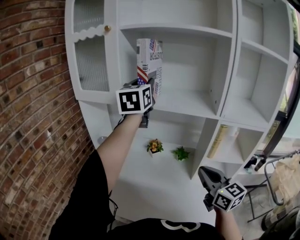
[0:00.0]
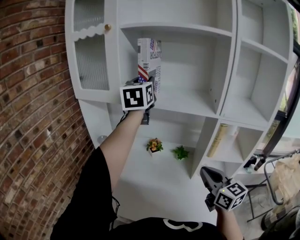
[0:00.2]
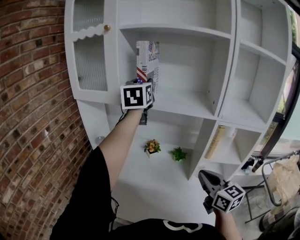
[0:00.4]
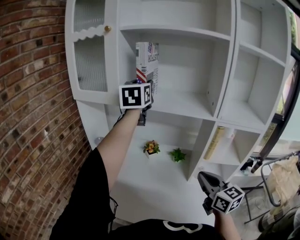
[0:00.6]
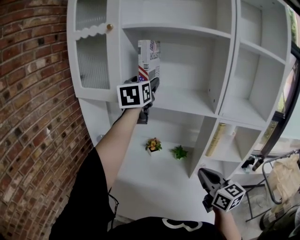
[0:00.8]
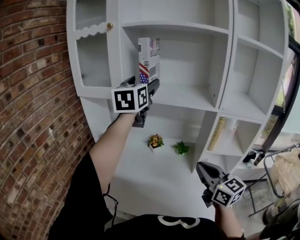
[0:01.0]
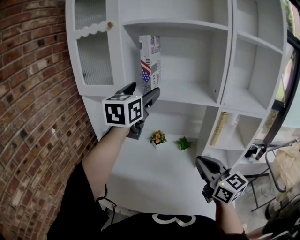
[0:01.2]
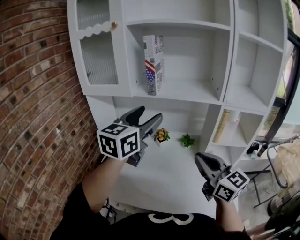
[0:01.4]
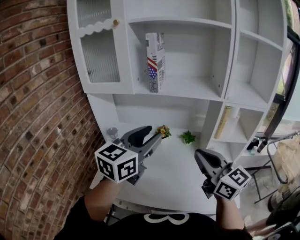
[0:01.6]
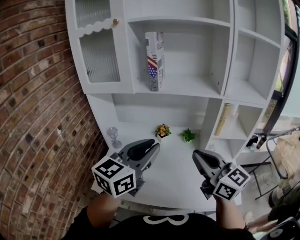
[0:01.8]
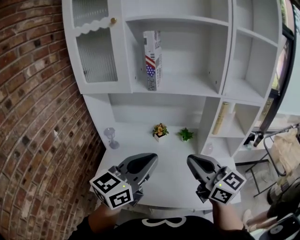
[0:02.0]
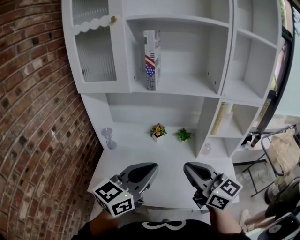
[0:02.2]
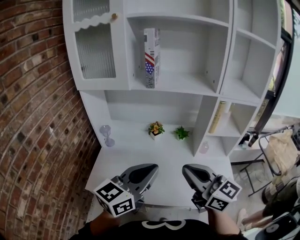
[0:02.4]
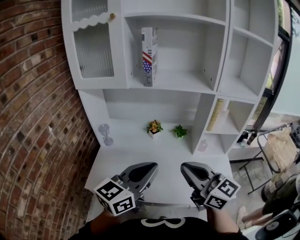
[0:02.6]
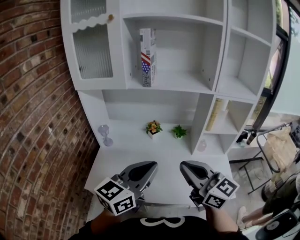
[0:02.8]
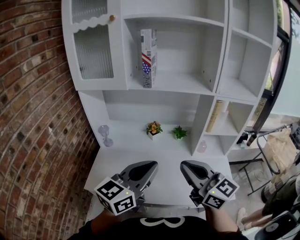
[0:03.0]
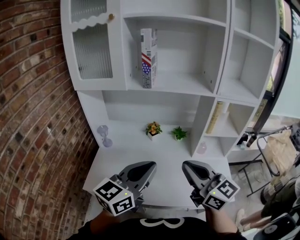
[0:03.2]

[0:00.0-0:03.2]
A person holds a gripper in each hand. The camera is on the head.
0.0 to 1.6 s: The right gripper goes about 15 cm to the left, upward and backward. The left gripper travels backward and downward by roughly 25 cm, changes its angle by roughly 30 degrees, and opens, then closes again.
1.6 to 3.2 s: The right gripper shifts by some 5 cm. Meanwhile the left gripper travels backward and downward by some 10 cm, and closes up.

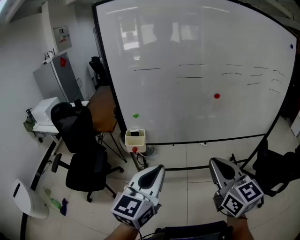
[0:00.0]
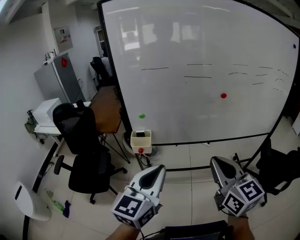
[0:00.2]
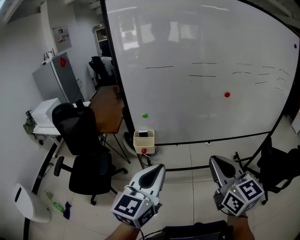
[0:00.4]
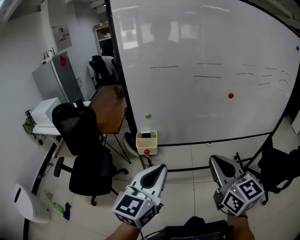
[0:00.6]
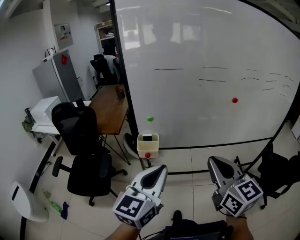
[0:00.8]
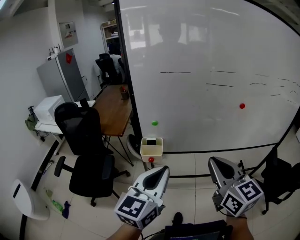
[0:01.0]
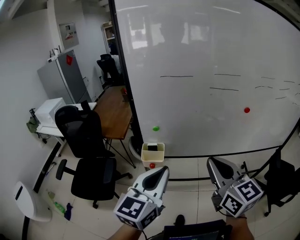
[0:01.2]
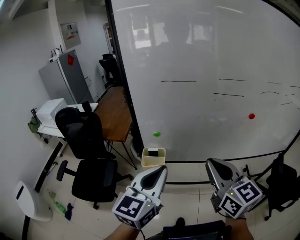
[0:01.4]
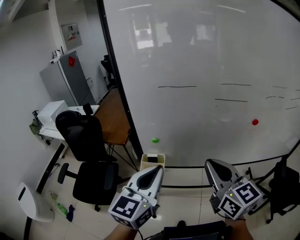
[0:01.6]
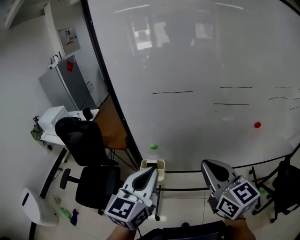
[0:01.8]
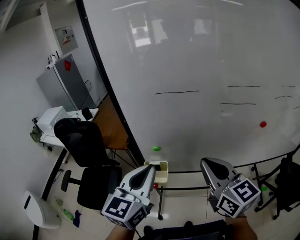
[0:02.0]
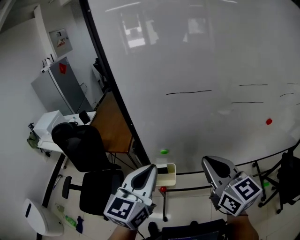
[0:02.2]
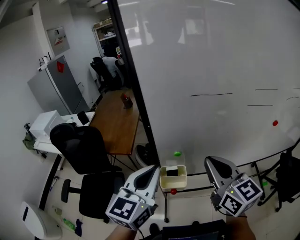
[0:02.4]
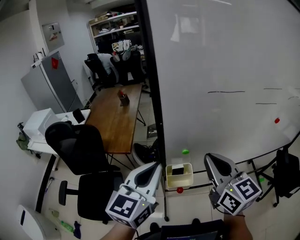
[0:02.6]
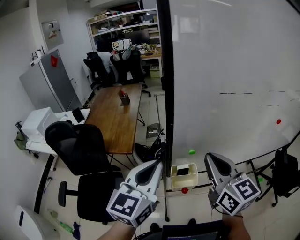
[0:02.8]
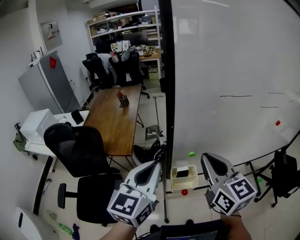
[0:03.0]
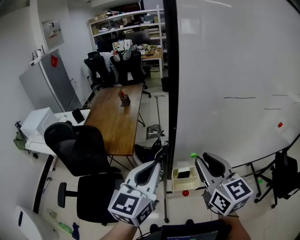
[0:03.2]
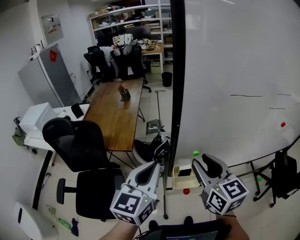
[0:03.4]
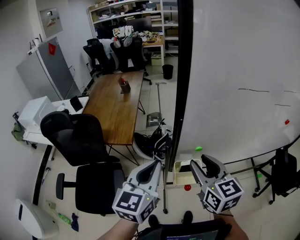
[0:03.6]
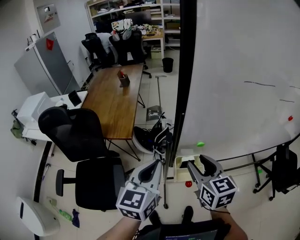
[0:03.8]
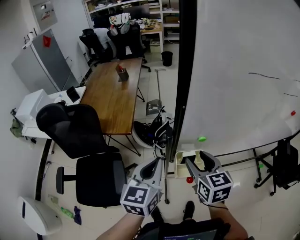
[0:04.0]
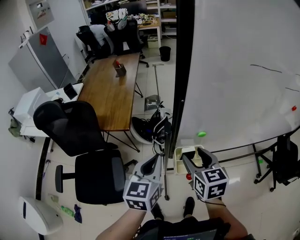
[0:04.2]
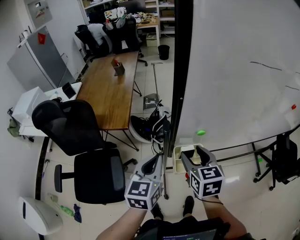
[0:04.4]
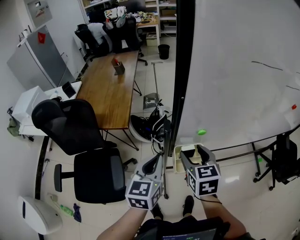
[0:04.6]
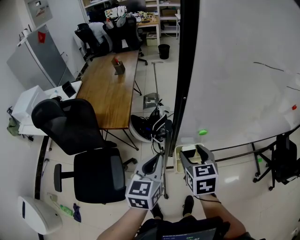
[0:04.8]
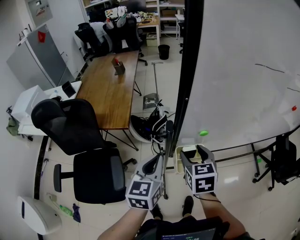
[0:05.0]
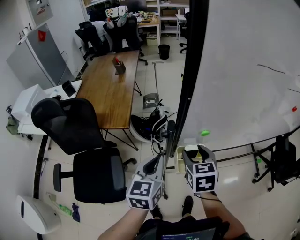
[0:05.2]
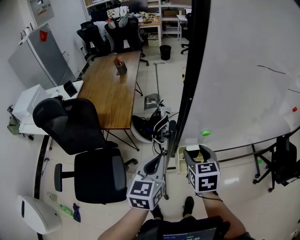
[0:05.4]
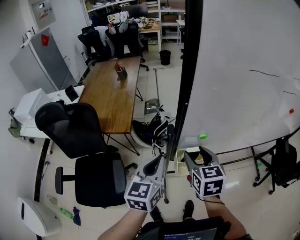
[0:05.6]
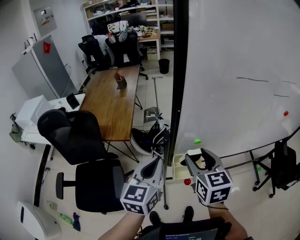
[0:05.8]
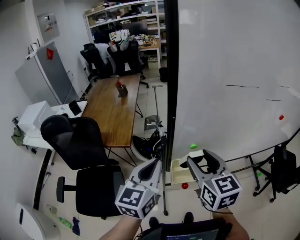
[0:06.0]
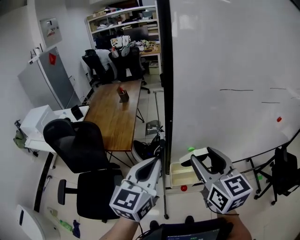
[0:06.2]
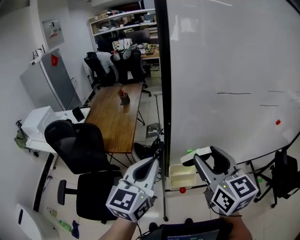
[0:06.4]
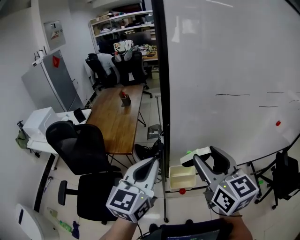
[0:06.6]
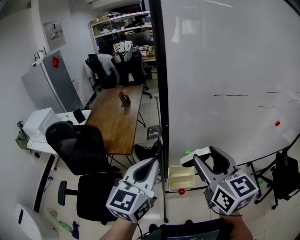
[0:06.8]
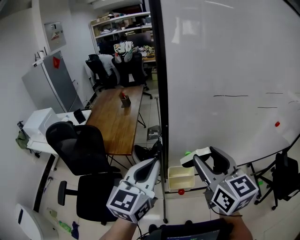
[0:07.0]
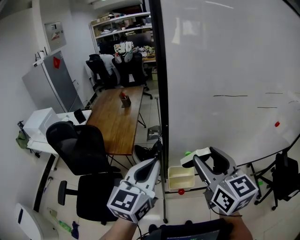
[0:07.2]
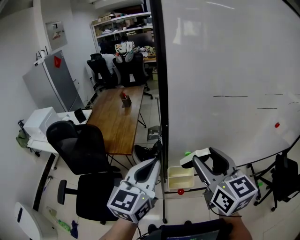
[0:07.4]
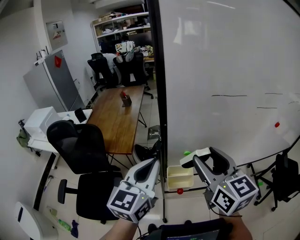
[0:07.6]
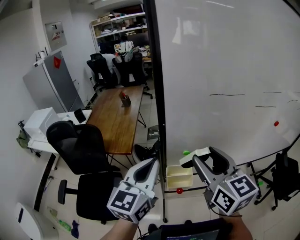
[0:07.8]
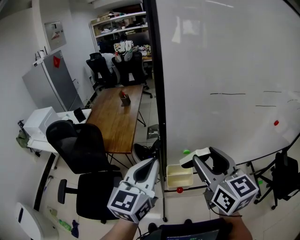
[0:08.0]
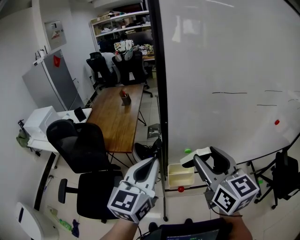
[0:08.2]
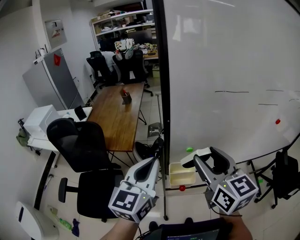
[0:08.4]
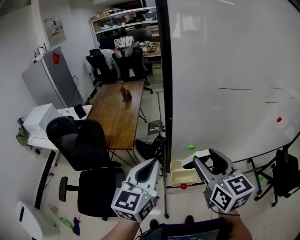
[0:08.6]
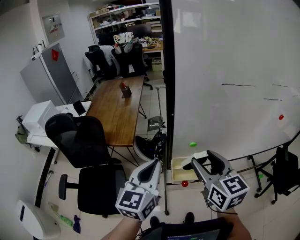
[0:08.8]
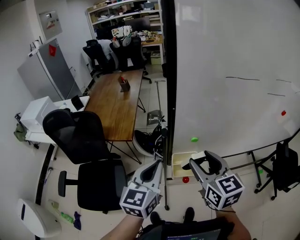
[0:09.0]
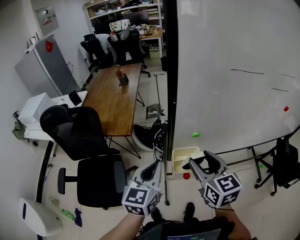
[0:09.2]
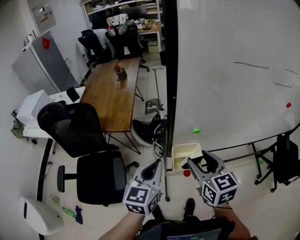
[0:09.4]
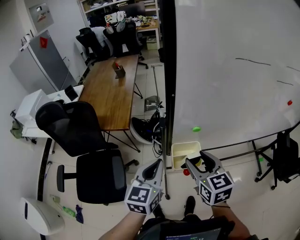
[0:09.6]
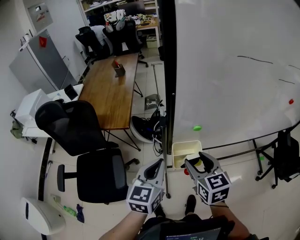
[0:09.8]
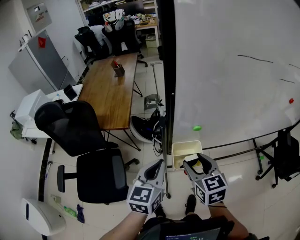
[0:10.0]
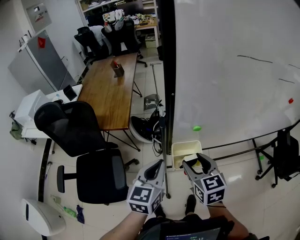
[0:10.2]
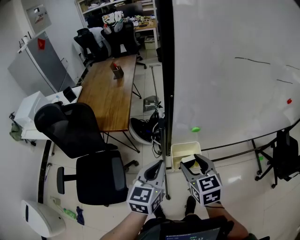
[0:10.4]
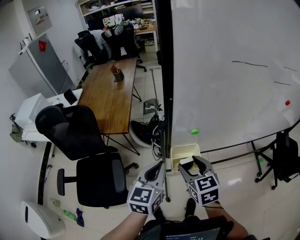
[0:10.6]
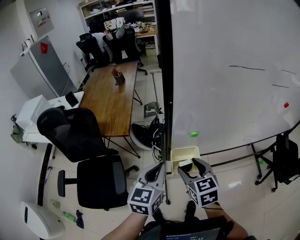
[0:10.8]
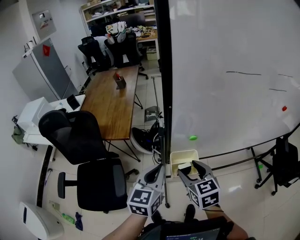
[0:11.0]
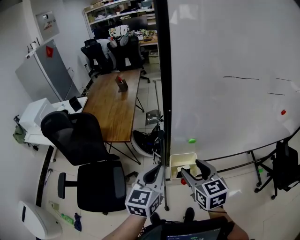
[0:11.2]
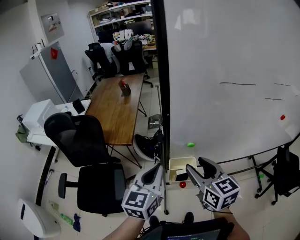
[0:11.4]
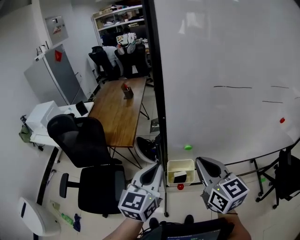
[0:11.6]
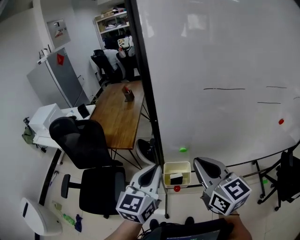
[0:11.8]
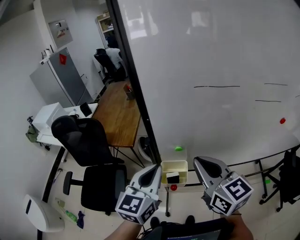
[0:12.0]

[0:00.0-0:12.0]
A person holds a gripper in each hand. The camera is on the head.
0.0 to 1.6 s: The grippers both shift forward and to the left by roughly 25 cm.
1.6 to 3.0 s: Both grippers move to the left and forward, roughly 30 cm.
3.0 to 4.4 s: Both grippers move downward, about 20 cm. The left gripper changes its angle by approximately 20 degrees. The right gripper turns by approximately 30 degrees, and opens its fingers.
4.4 to 6.0 s: Both grippers move upward, about 15 cm.
6.0 to 7.6 s: The grippers both shift upward by approximately 10 cm.
7.6 to 9.0 s: The two grippers go about 10 cm downward.
9.0 to 10.4 s: The right gripper heads downward, covering about 15 cm. The left gripper goes about 10 cm downward.
10.4 to 12.0 s: Both grippers travel together upward and to the right, about 20 cm. The right gripper swivels some 30 degrees, and closes up.

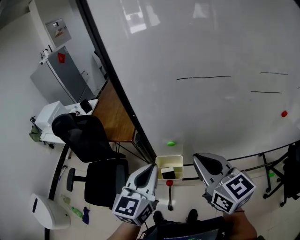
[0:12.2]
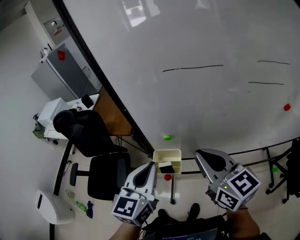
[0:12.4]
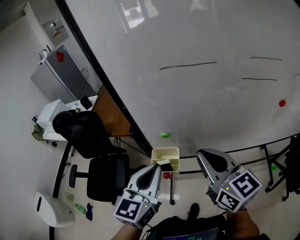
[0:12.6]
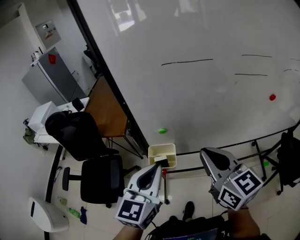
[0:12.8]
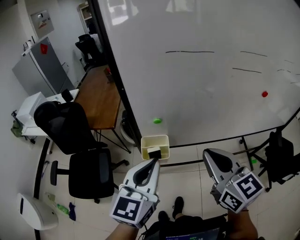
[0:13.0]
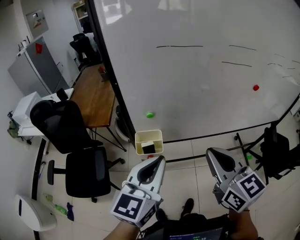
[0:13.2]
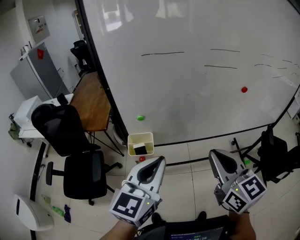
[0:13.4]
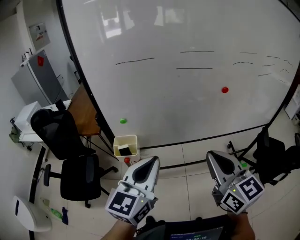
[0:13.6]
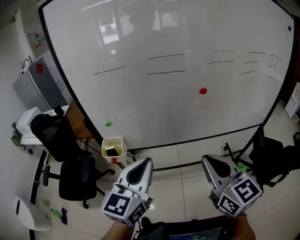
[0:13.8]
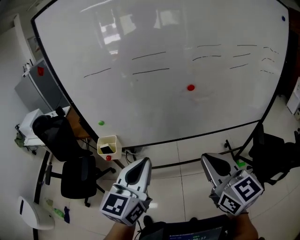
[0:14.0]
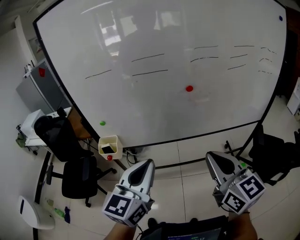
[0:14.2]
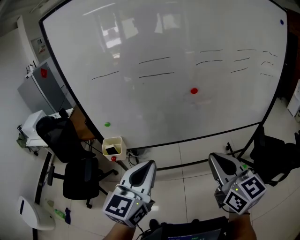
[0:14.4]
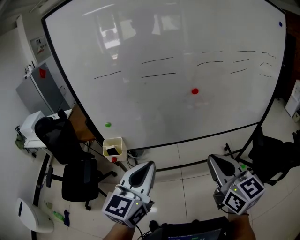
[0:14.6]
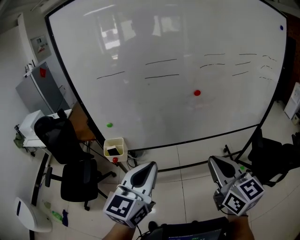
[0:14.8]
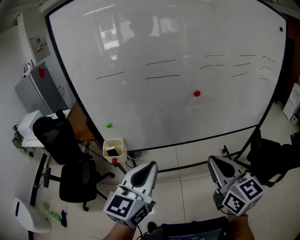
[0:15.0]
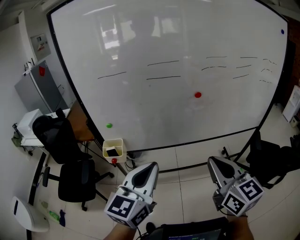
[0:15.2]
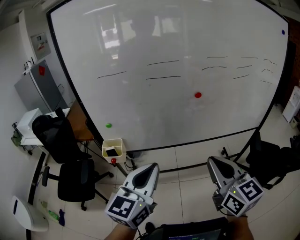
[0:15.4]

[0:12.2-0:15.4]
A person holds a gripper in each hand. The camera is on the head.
12.2 to 13.8 s: The grippers both shift to the right and backward by approximately 40 cm.

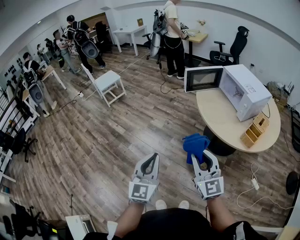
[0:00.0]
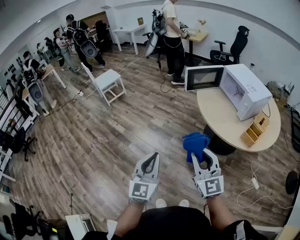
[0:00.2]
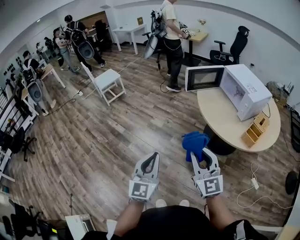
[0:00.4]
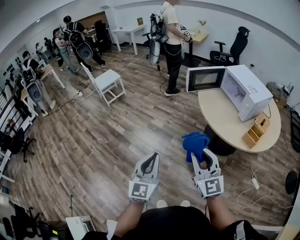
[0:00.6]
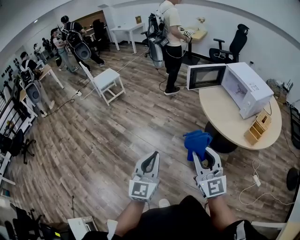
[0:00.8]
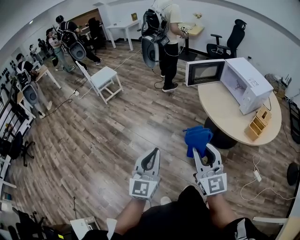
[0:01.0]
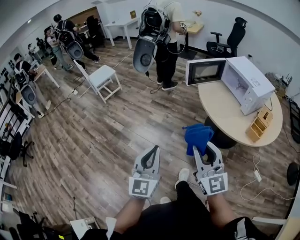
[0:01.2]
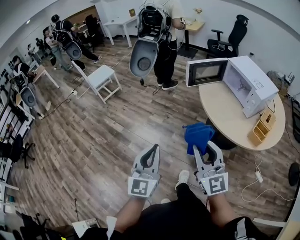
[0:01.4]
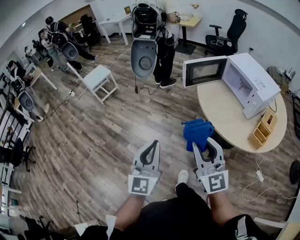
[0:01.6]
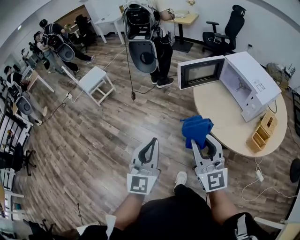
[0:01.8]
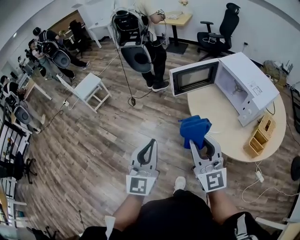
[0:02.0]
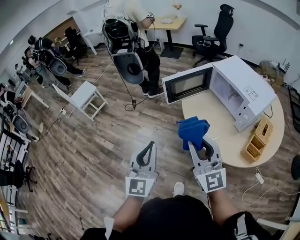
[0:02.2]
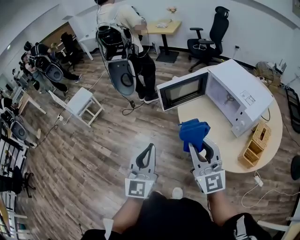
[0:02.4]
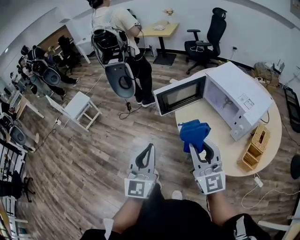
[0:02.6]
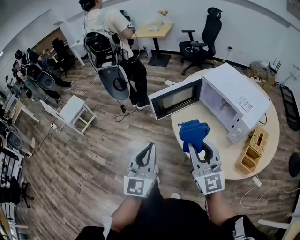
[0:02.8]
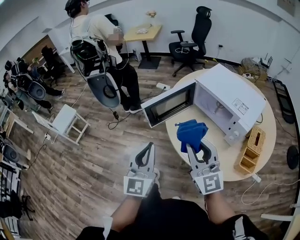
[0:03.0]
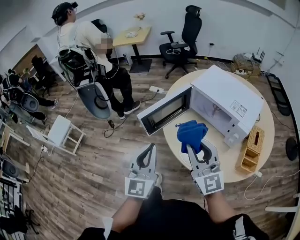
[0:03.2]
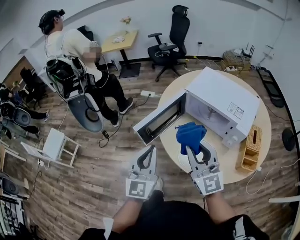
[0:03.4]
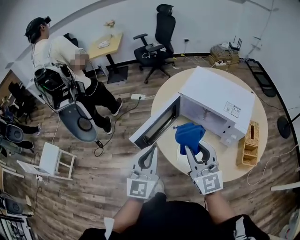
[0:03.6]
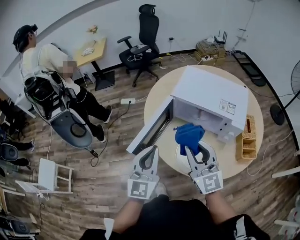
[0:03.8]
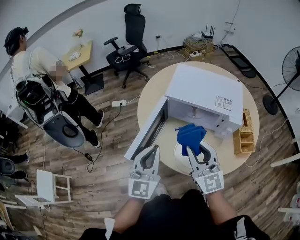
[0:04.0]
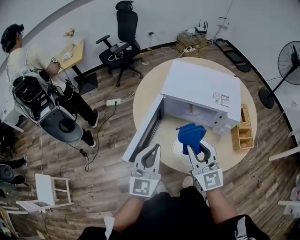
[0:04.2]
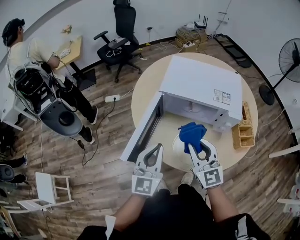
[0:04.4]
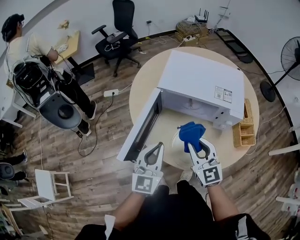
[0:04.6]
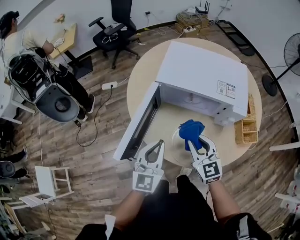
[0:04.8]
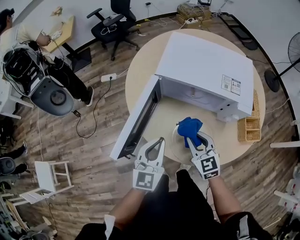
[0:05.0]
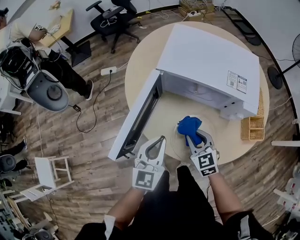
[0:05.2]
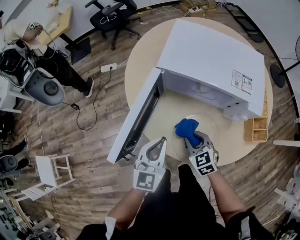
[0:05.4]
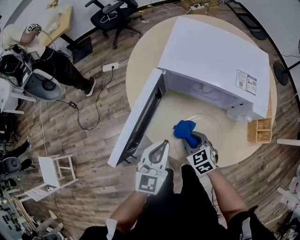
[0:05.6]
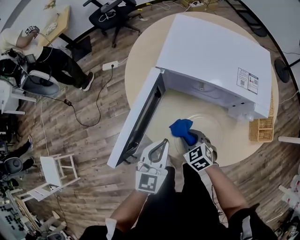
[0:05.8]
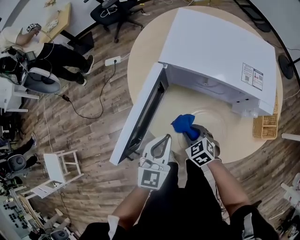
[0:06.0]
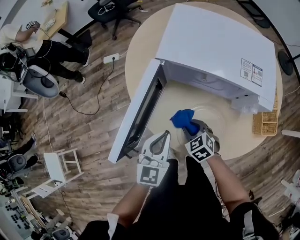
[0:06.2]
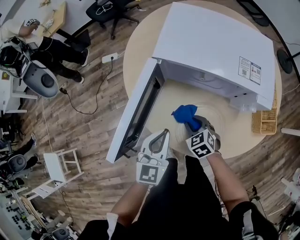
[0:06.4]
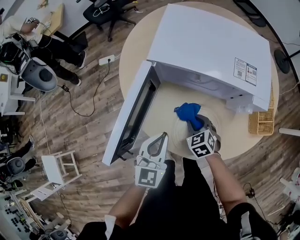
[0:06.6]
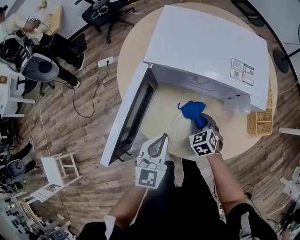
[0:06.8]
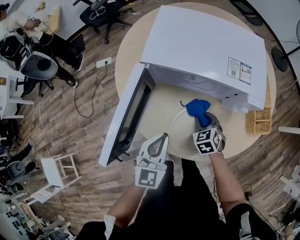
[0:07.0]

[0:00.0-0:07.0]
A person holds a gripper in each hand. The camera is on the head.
0.0 to 1.4 s: The grippers both shift forward by some 10 cm.
1.4 to 2.8 s: Both grippers travel together forward and to the right, roughly 35 cm.
2.8 to 4.2 s: The right gripper moves some 20 cm, and turns by about 40 degrees; the left gripper changes place by roughly 25 cm, and swivels roughly 40 degrees.
4.2 to 5.6 s: The left gripper is displaced downward by roughly 15 cm. Meanwhile the right gripper travels downward by about 25 cm, and points its fingers some 40 degrees further downward.
5.6 to 7.0 s: The right gripper heads to the right and forward, covering some 10 cm, and turns by roughly 20 degrees.
